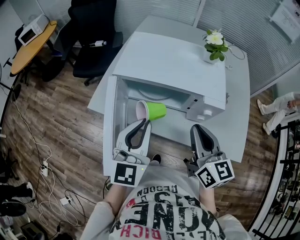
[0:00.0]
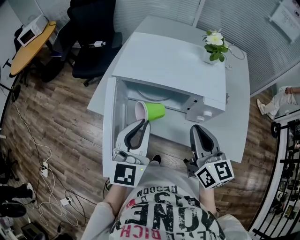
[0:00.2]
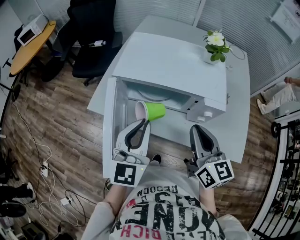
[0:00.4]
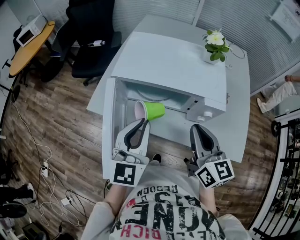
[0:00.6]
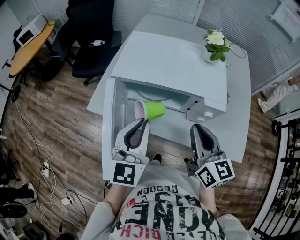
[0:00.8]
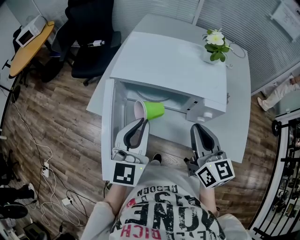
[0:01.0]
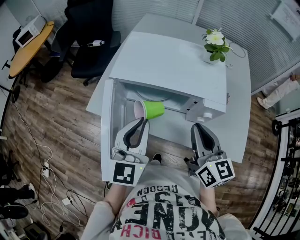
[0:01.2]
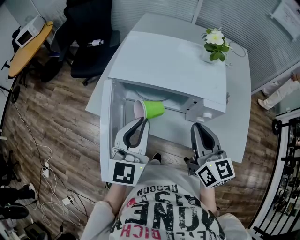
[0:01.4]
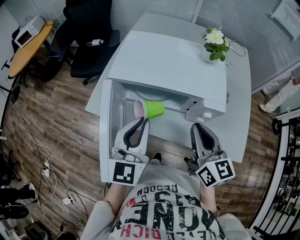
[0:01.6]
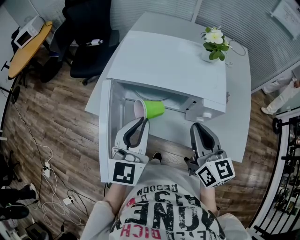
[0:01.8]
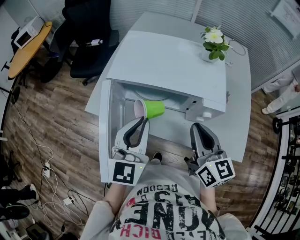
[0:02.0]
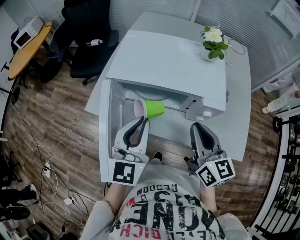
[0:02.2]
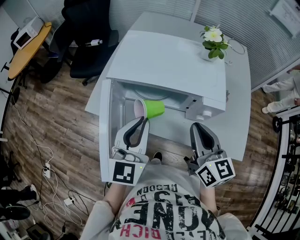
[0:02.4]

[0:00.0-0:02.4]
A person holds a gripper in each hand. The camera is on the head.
0:00.0 to 0:01.2: The grippers move only a little.
0:01.2 to 0:02.4: The two grippers keep their place.

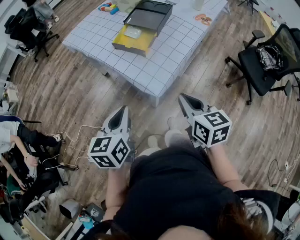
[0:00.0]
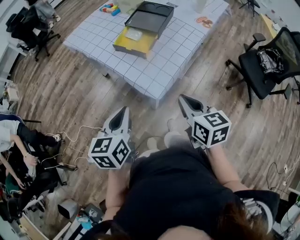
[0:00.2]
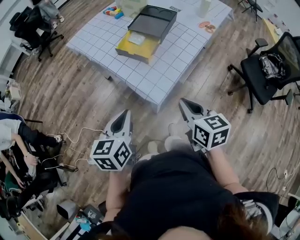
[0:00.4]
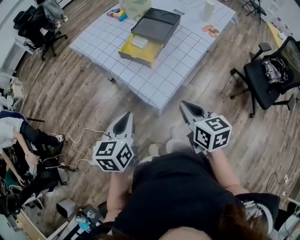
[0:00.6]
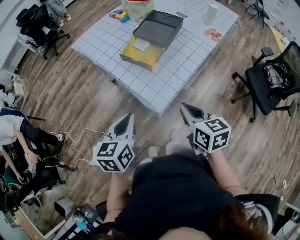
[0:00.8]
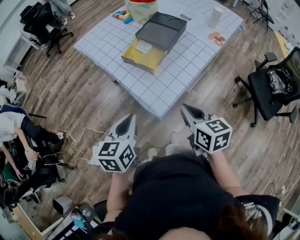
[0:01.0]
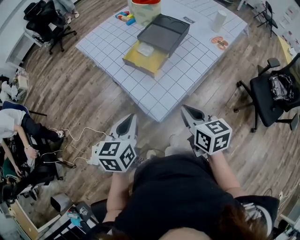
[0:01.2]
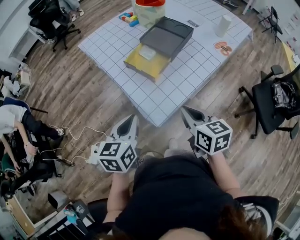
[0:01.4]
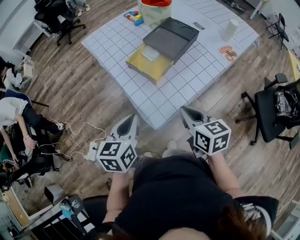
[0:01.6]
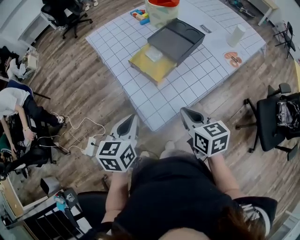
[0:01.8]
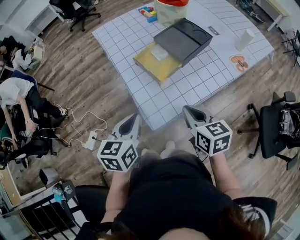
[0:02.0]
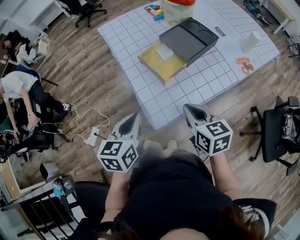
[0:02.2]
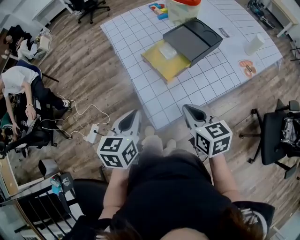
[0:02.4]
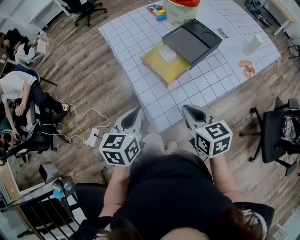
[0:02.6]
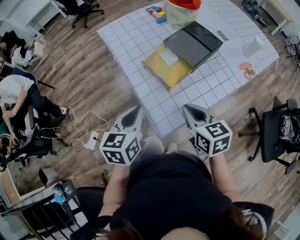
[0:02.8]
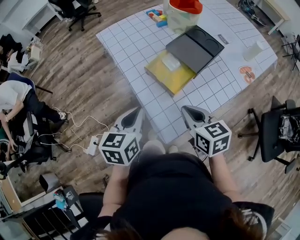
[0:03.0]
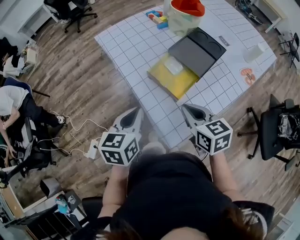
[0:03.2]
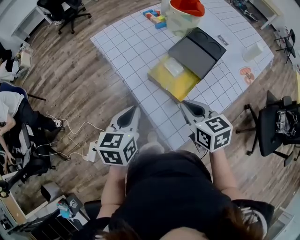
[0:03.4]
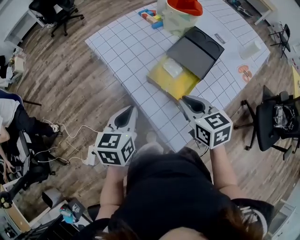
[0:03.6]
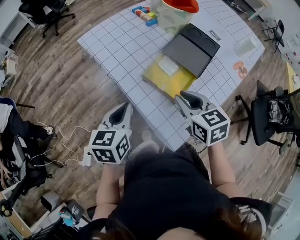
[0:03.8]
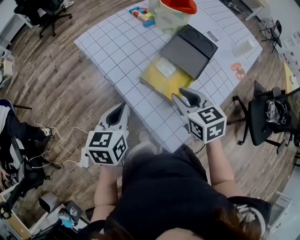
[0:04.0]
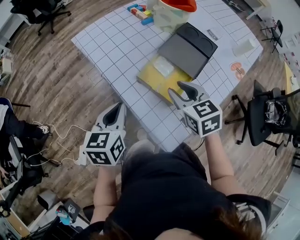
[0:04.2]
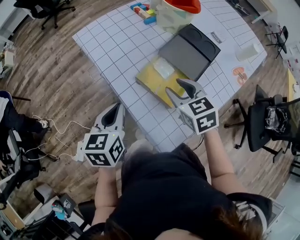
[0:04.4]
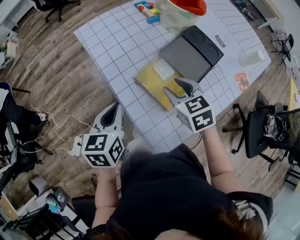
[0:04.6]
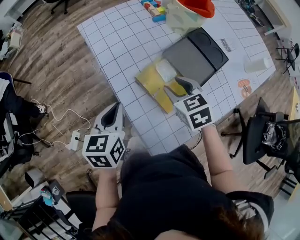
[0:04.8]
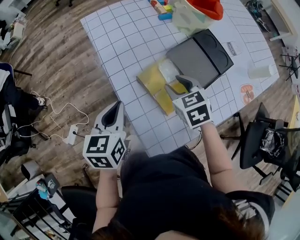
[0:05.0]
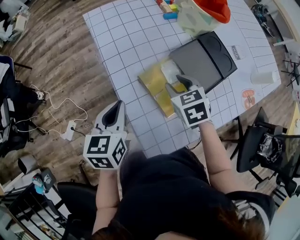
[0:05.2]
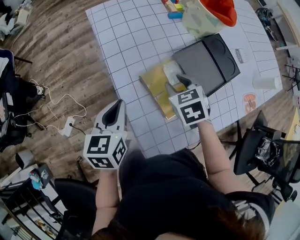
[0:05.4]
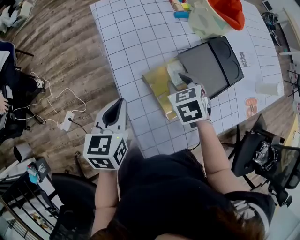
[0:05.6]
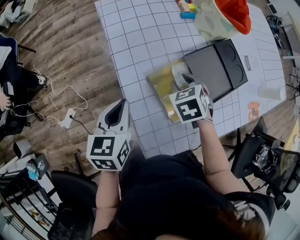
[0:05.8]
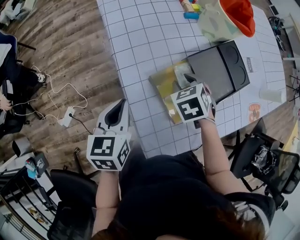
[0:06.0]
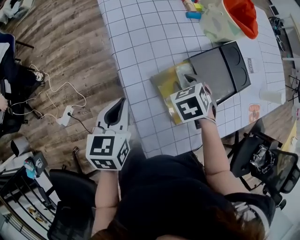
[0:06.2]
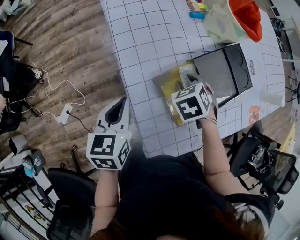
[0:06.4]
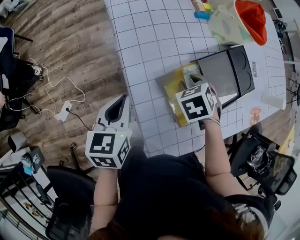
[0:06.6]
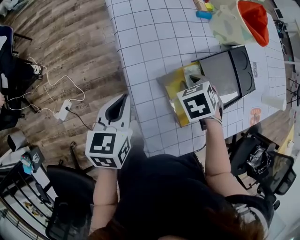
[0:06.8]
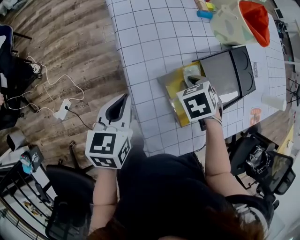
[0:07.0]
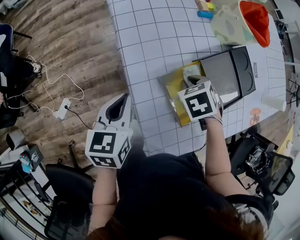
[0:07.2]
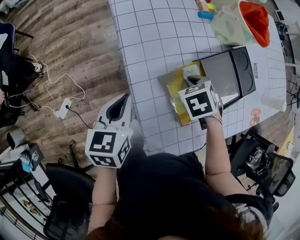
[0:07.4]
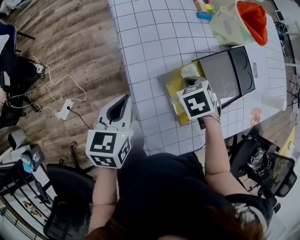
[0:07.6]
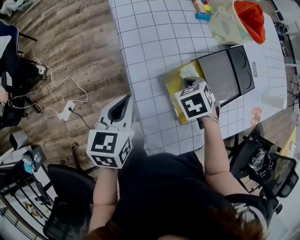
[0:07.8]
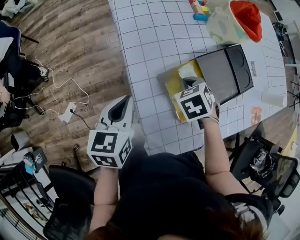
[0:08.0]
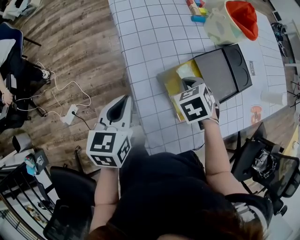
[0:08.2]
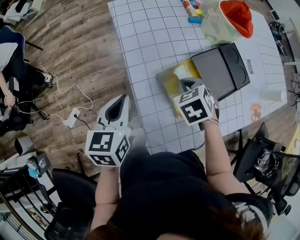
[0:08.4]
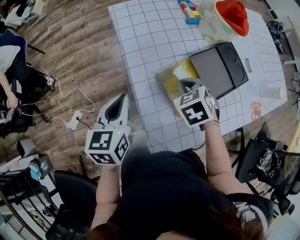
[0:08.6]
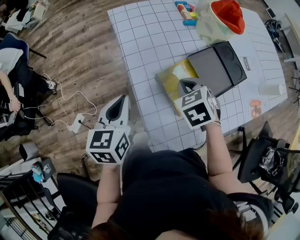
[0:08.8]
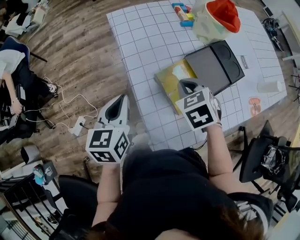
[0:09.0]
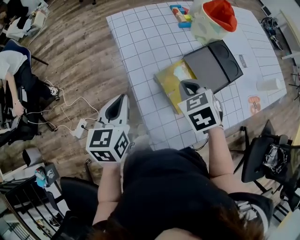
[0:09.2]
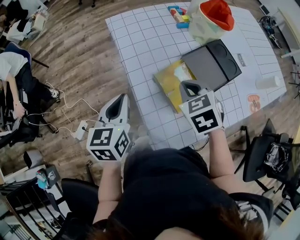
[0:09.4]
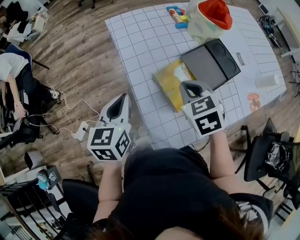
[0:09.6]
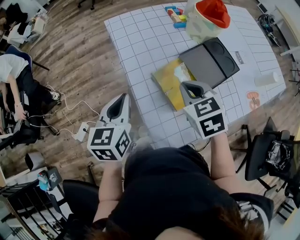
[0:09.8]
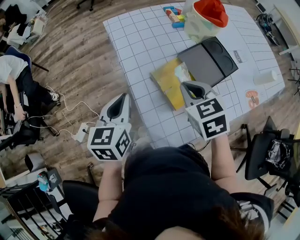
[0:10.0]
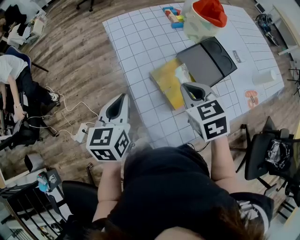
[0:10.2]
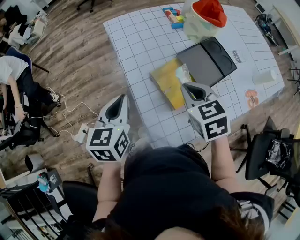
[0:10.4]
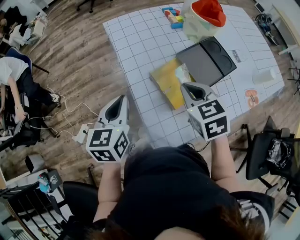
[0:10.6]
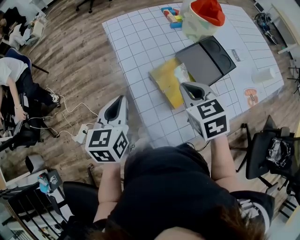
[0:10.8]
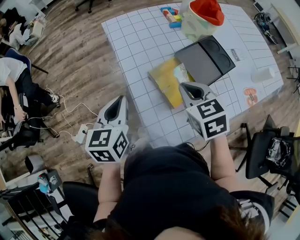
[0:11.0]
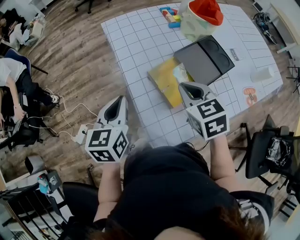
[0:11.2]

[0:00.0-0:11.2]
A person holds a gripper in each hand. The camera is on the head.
0:00.0 to 0:01.6: The left gripper heads forward and to the right, covering some 10 cm; the right gripper heads forward, covering roughly 15 cm.
0:01.6 to 0:03.2: The right gripper is displaced forward and to the left by approximately 15 cm. The left gripper goes some 10 cm forward.
0:03.2 to 0:04.8: The right gripper travels forward by some 15 cm, swivels roughly 20 degrees, and opens up, while the left gripper travels forward by roughly 10 cm.
0:04.8 to 0:06.4: The left gripper moves some 5 cm, while the right gripper goes approximately 10 cm downward and forward, and rotates roughly 30 degrees.
0:06.4 to 0:08.0: The right gripper closes its fingers.
0:08.0 to 0:09.6: The right gripper is displaced upward and backward by approximately 15 cm, and changes its angle by about 20 degrees. The left gripper moves upward, some 5 cm.
0:09.6 to 0:11.2: There are only small adjustments of the grippers.

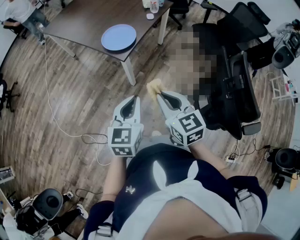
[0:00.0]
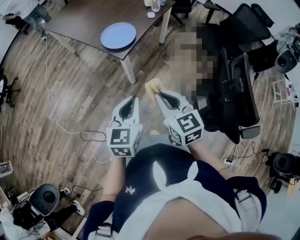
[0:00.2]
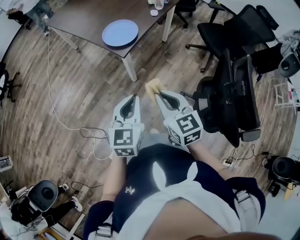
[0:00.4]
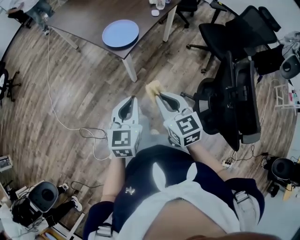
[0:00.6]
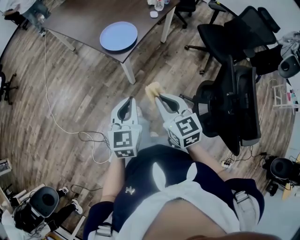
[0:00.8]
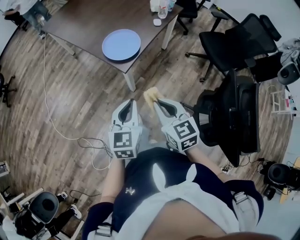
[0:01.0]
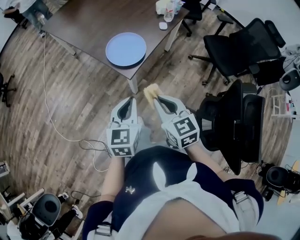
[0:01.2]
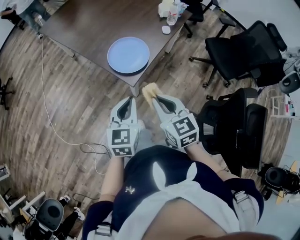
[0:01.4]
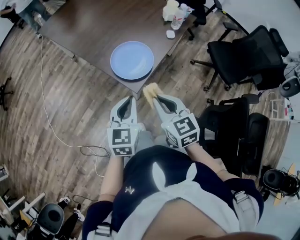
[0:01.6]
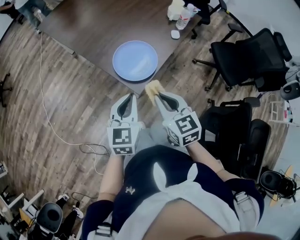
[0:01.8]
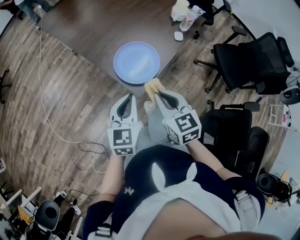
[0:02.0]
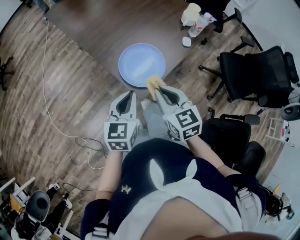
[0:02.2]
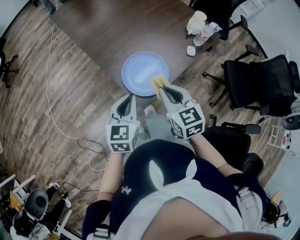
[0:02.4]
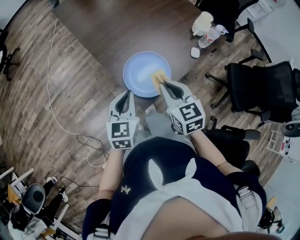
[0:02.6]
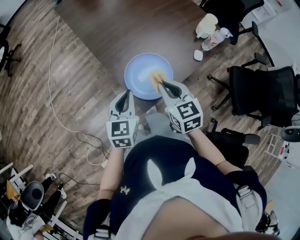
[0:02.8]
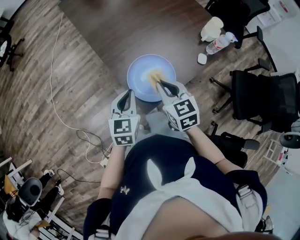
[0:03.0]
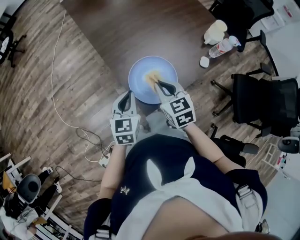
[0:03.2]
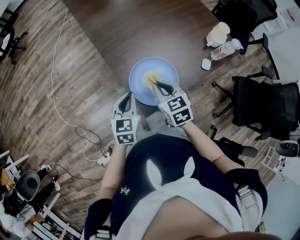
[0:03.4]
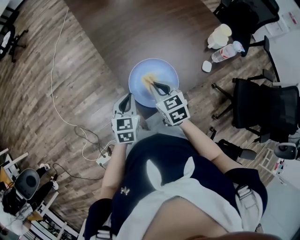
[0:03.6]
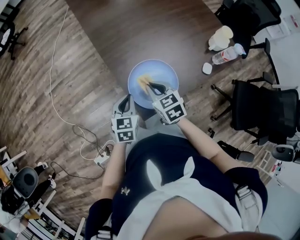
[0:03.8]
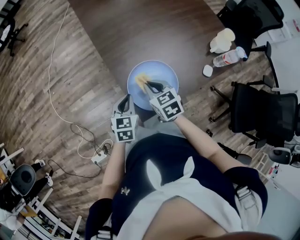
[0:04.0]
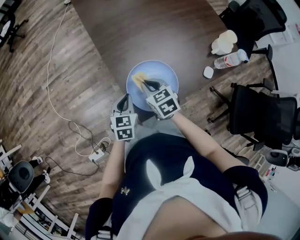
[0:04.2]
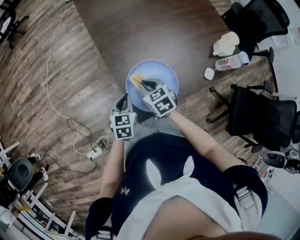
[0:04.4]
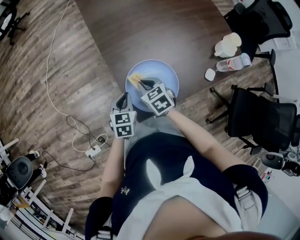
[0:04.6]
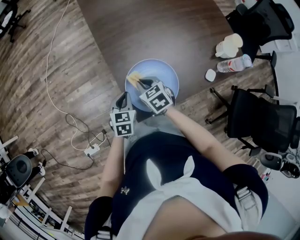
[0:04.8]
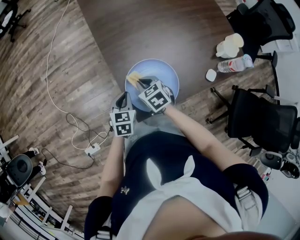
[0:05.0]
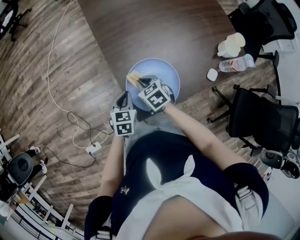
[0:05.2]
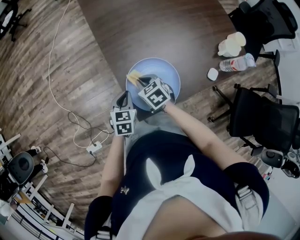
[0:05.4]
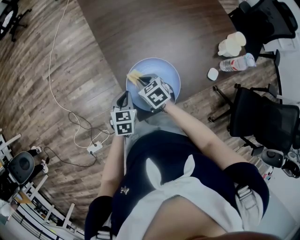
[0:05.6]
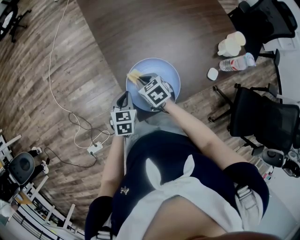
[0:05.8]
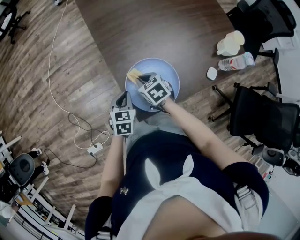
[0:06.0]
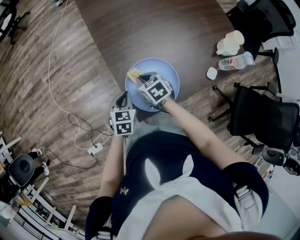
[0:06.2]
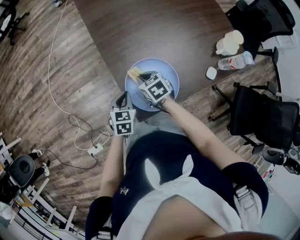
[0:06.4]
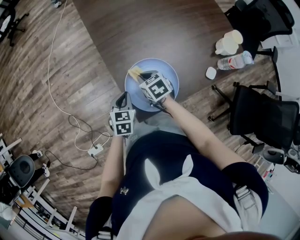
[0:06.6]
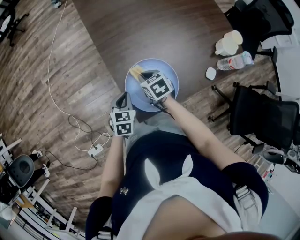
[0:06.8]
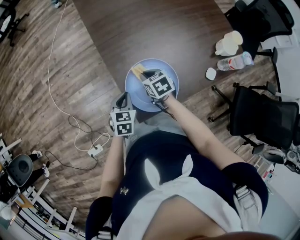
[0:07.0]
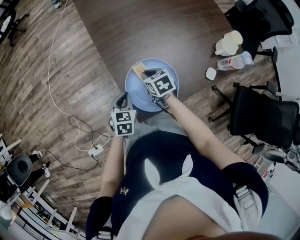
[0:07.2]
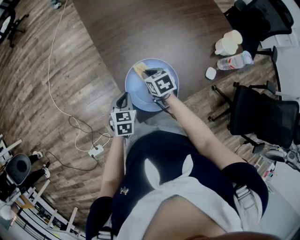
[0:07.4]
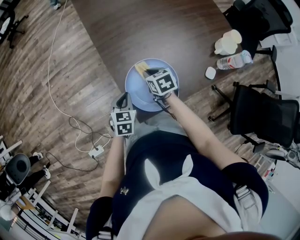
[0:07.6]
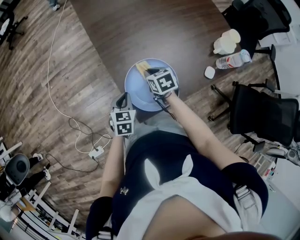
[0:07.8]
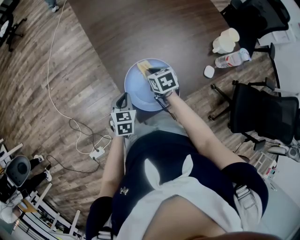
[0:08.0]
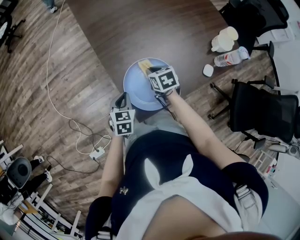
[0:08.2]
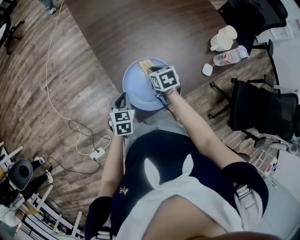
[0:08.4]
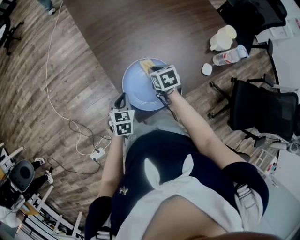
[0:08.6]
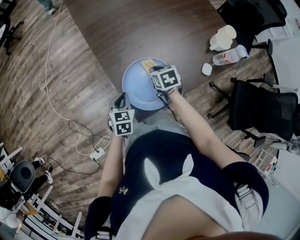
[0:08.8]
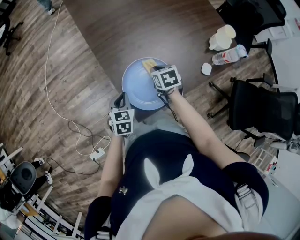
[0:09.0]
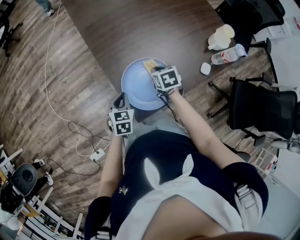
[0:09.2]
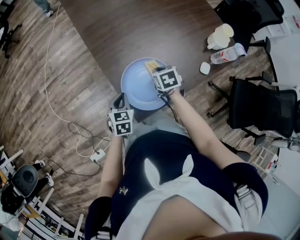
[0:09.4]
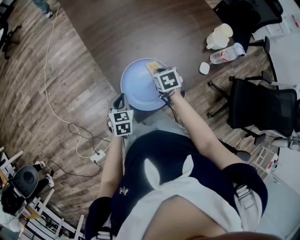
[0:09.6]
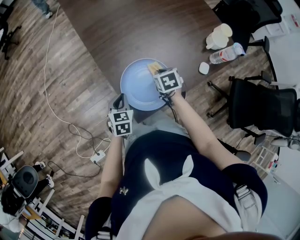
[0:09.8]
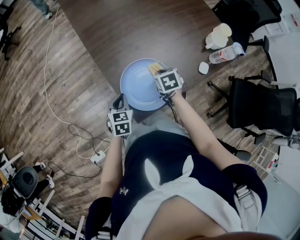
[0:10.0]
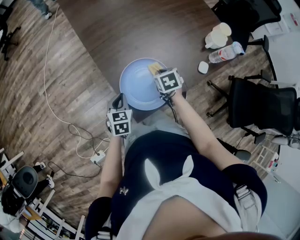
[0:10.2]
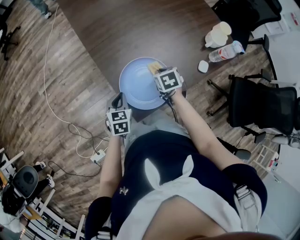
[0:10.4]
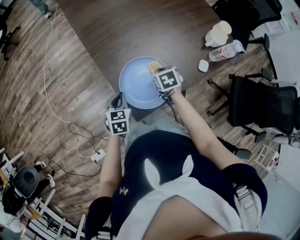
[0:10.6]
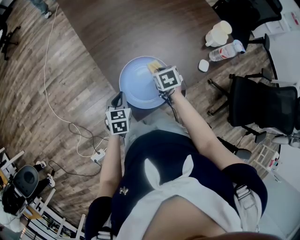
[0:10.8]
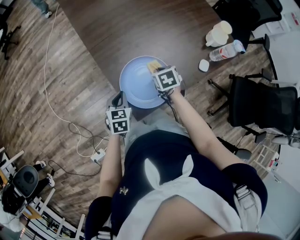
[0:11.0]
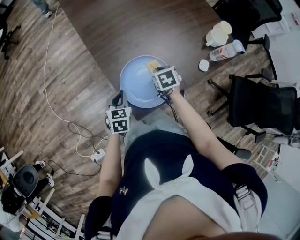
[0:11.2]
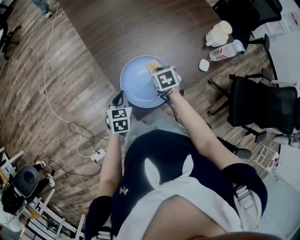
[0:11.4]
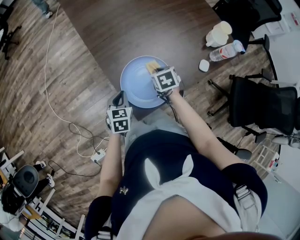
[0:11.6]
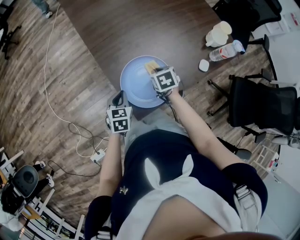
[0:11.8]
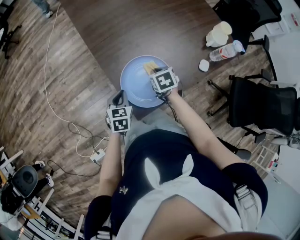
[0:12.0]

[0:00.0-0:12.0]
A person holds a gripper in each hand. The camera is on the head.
0:00.0 to 0:01.6: The two grippers go approximately 35 cm forward.
0:01.6 to 0:03.0: The grippers both shift forward by approximately 25 cm. The left gripper rotates approximately 20 degrees.
0:03.0 to 0:04.4: The right gripper is displaced downward and forward by approximately 15 cm, and swivels some 20 degrees. The left gripper travels downward by about 15 cm.
0:04.4 to 0:06.0: The right gripper shifts by roughly 5 cm.
0:06.0 to 0:07.6: The right gripper is displaced to the right by approximately 5 cm.
0:07.6 to 0:09.0: The right gripper goes approximately 5 cm to the right.
0:09.0 to 0:12.0: The grippers stay close to where they were, moving slightly.
